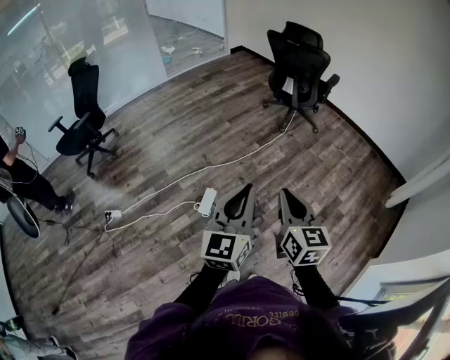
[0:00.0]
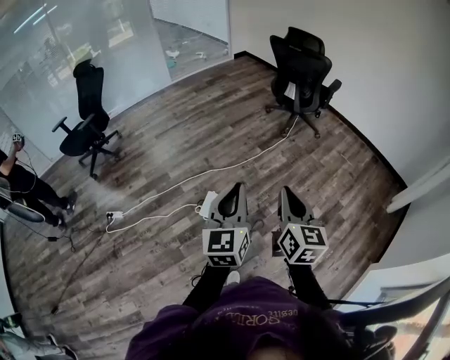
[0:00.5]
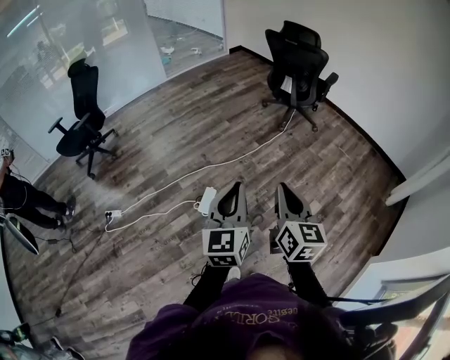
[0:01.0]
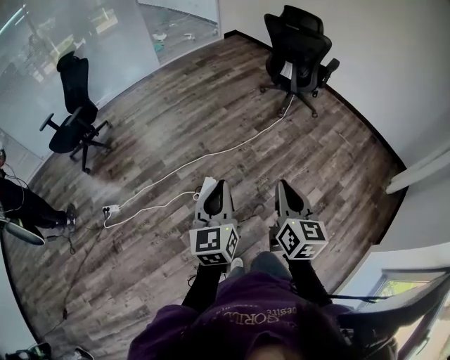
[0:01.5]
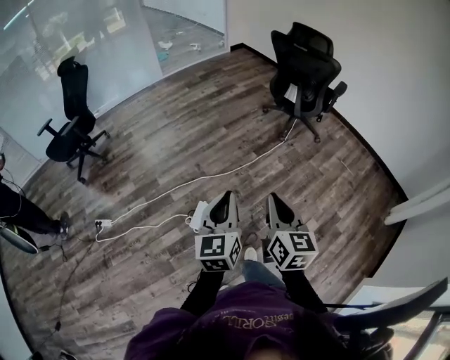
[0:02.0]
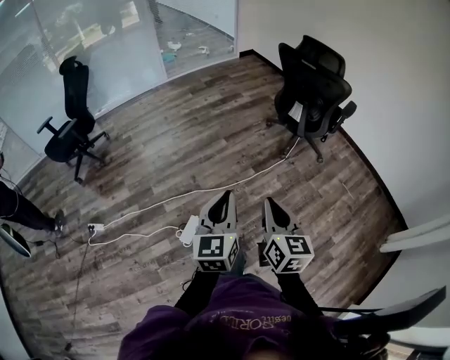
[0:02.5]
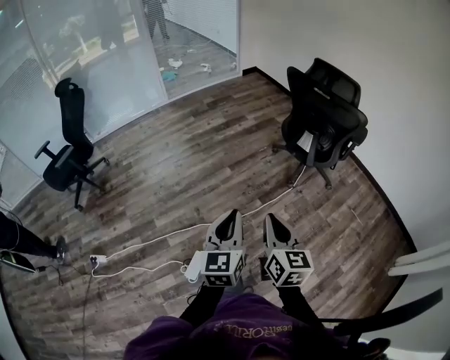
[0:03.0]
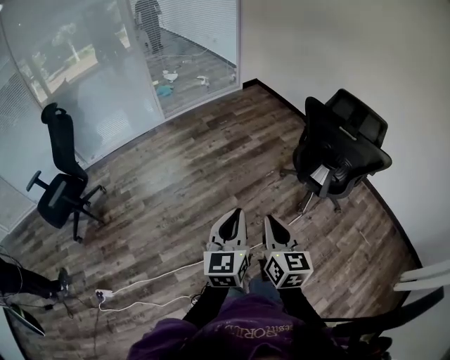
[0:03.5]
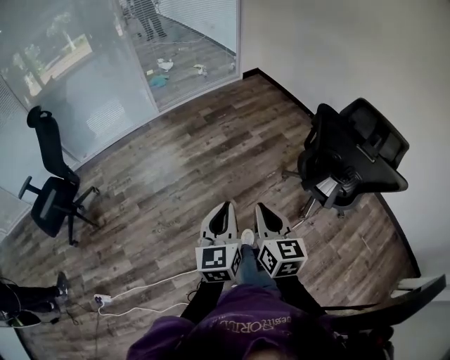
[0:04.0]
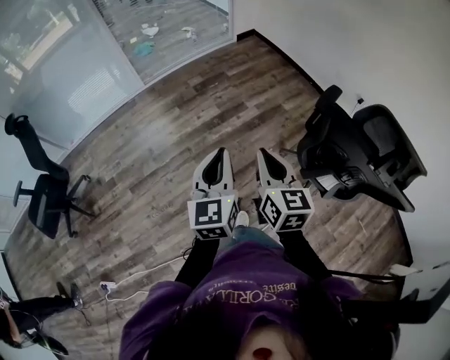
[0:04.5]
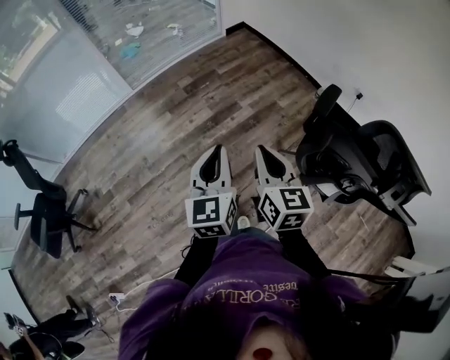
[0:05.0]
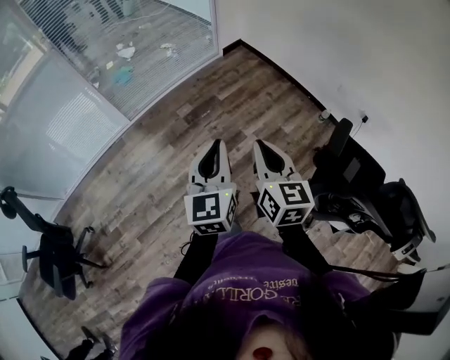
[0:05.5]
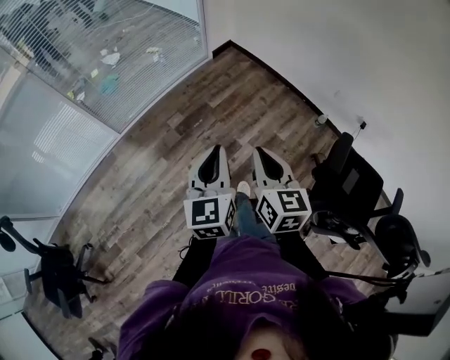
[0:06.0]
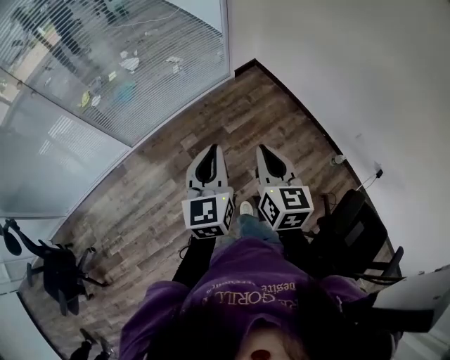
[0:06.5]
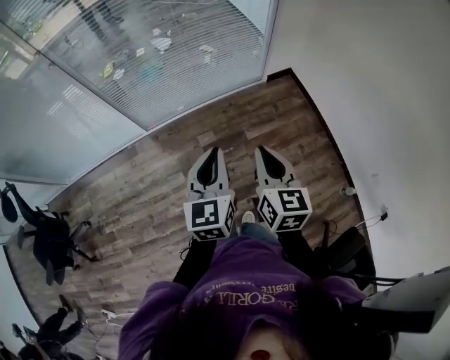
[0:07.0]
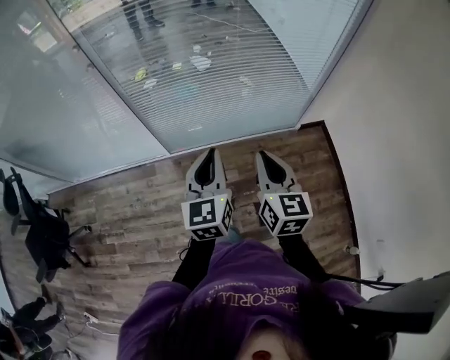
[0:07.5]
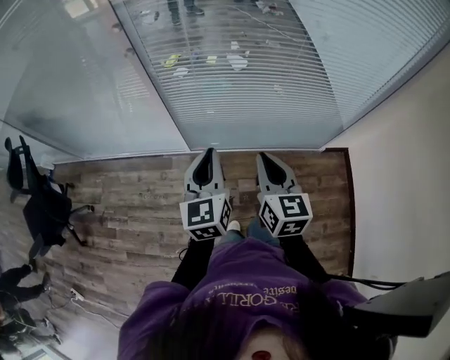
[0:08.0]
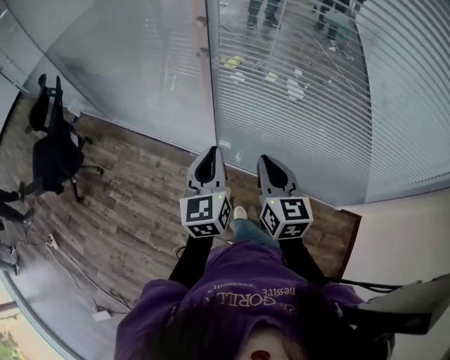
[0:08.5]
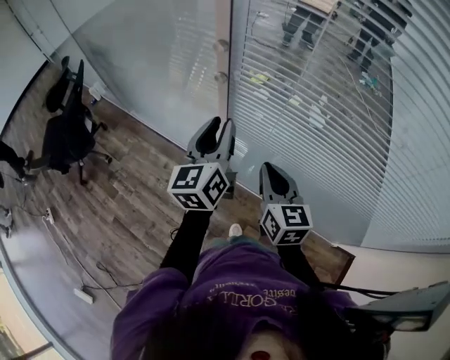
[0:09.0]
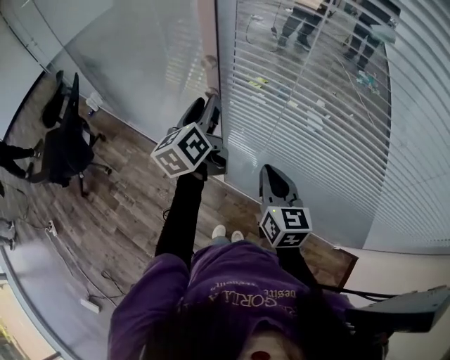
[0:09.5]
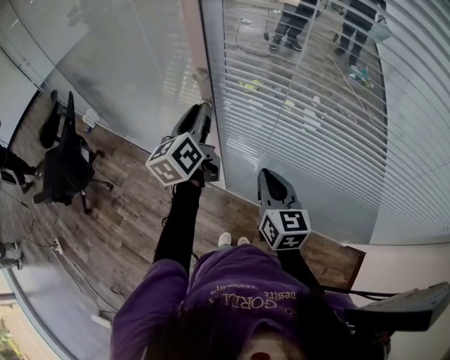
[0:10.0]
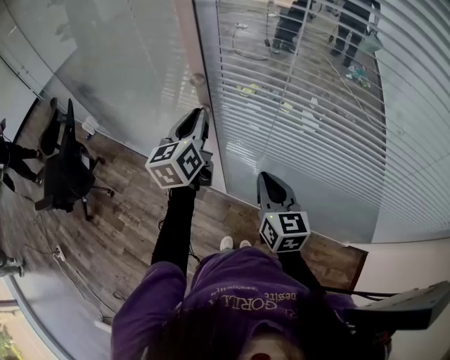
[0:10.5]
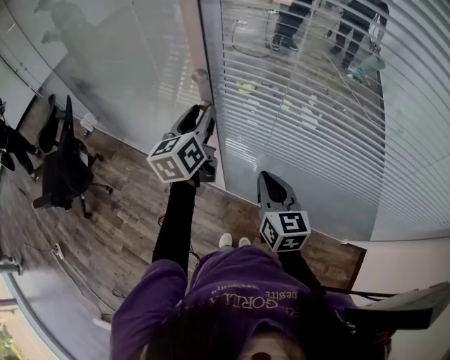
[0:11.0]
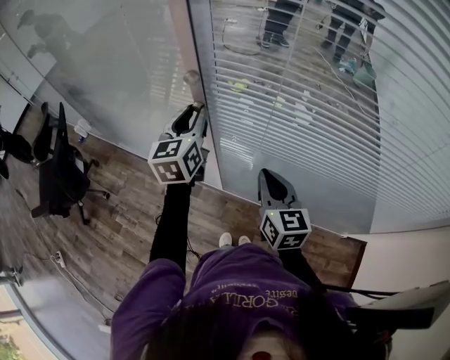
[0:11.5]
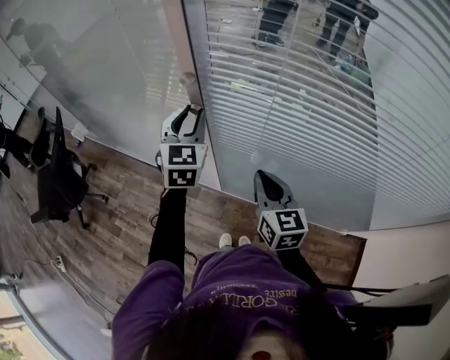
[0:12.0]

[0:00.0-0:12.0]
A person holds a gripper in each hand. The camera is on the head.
0:00.0 to 0:02.0: The left gripper travels forward and downward by some 20 cm. Meanwhile the right gripper shifts about 15 cm forward.
0:02.0 to 0:04.0: The pair of grippers is taken forward, about 70 cm.
0:04.0 to 0:06.0: The two grippers travel together, forward, some 70 cm.
0:06.0 to 0:08.0: The pair of grippers is taken roughly 60 cm. The right gripper changes its angle by roughly 40 degrees; the left gripper changes its angle by roughly 50 degrees.
0:08.0 to 0:10.0: The left gripper ends up approximately 40 cm from where it was, turns by some 30 degrees, and opens its fingers. The right gripper changes place by about 30 cm, and turns by about 30 degrees.
0:10.0 to 0:12.0: The left gripper twists about 50 degrees clockwise, seen from behind.

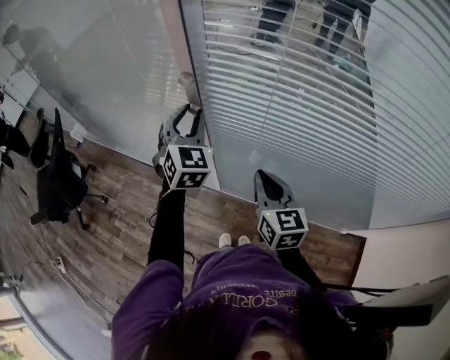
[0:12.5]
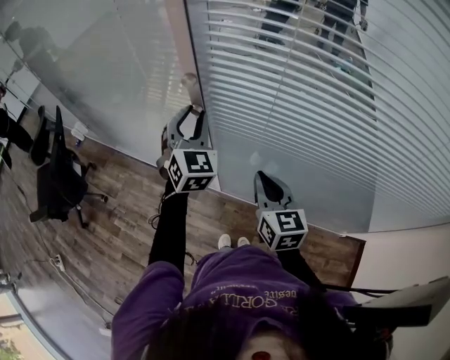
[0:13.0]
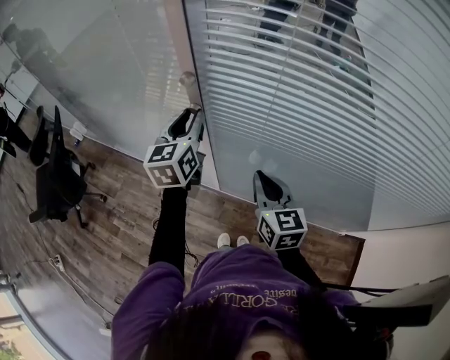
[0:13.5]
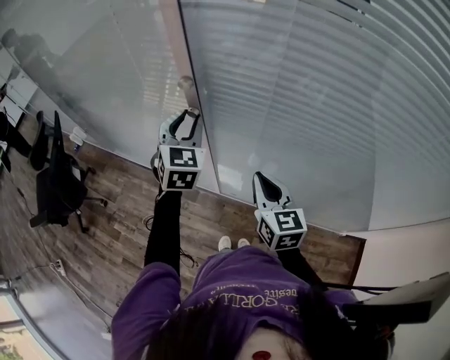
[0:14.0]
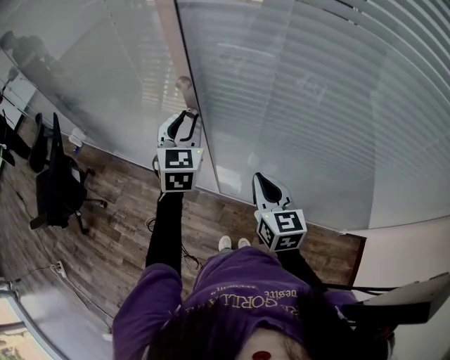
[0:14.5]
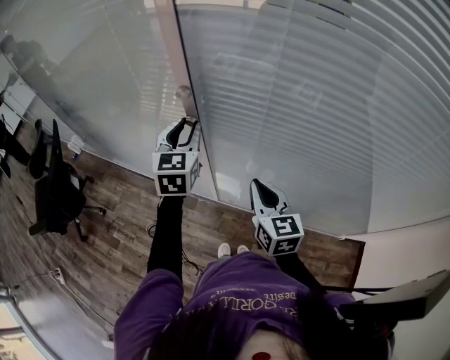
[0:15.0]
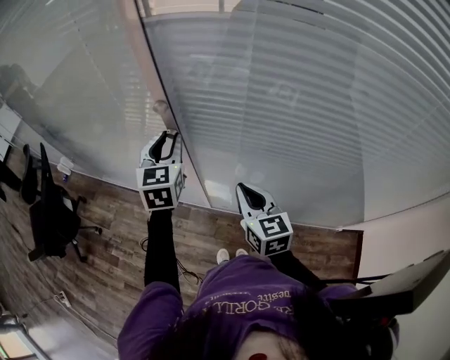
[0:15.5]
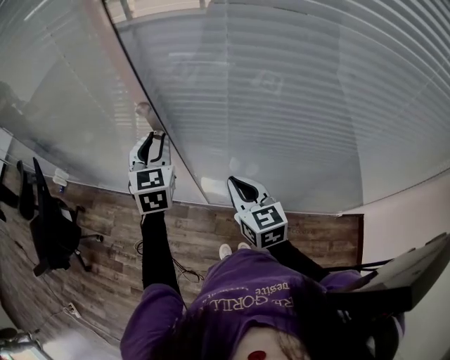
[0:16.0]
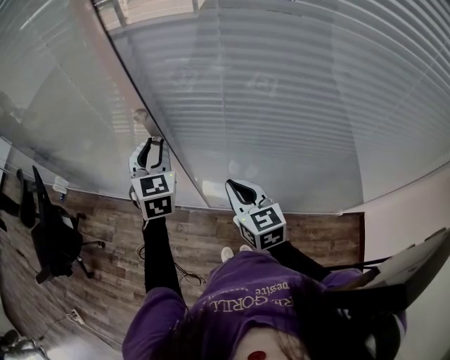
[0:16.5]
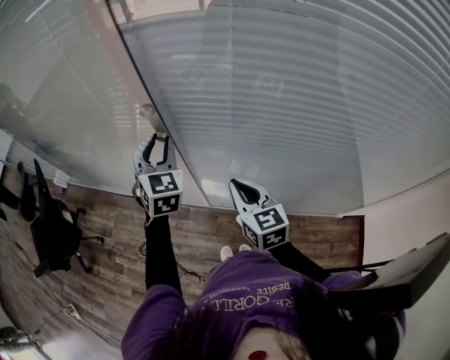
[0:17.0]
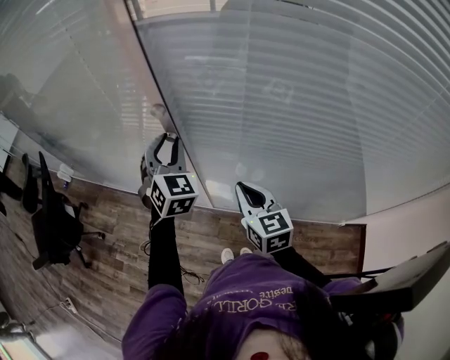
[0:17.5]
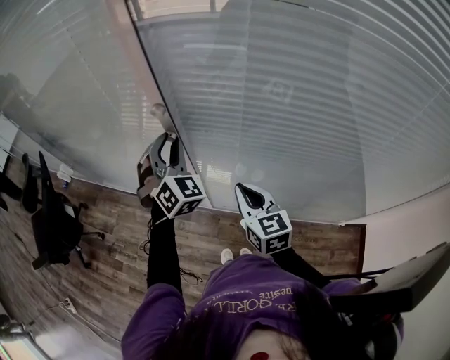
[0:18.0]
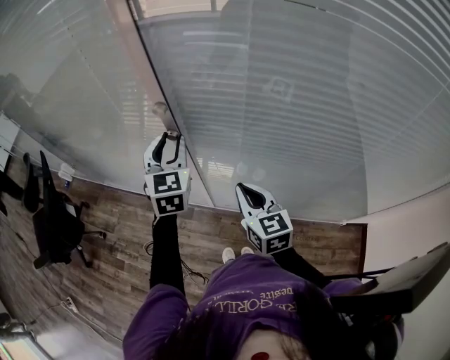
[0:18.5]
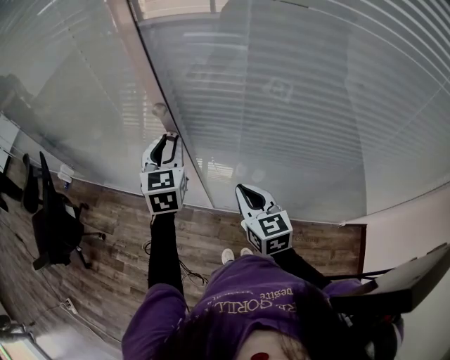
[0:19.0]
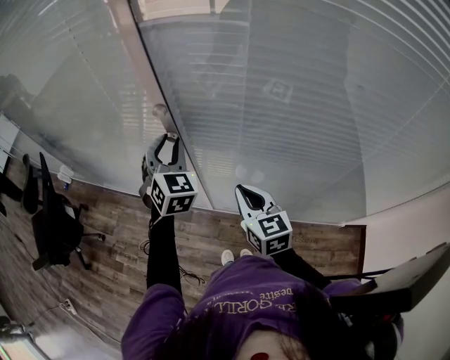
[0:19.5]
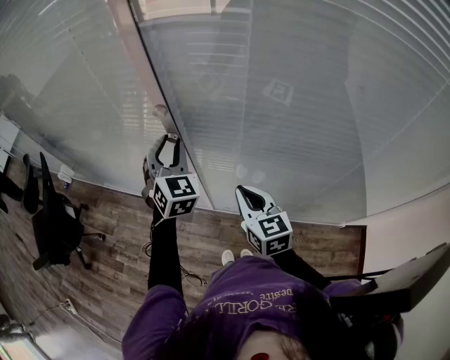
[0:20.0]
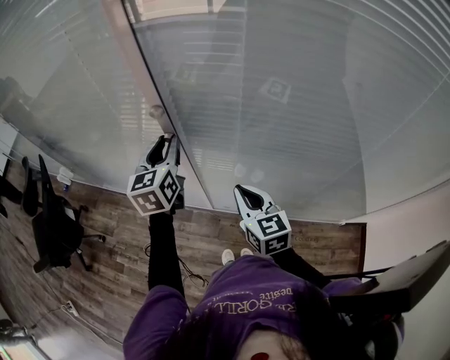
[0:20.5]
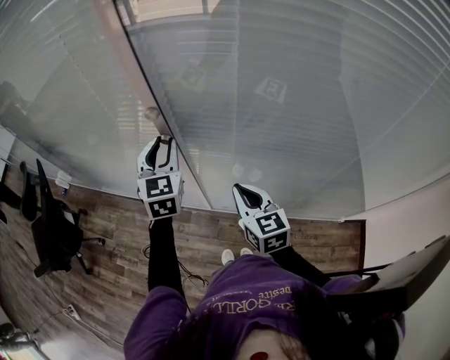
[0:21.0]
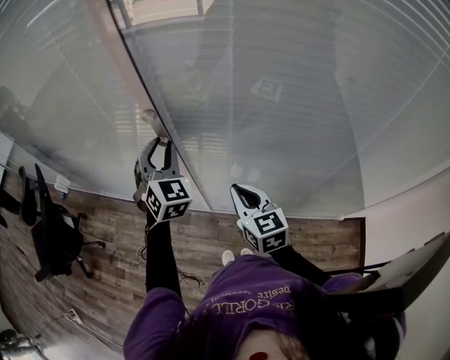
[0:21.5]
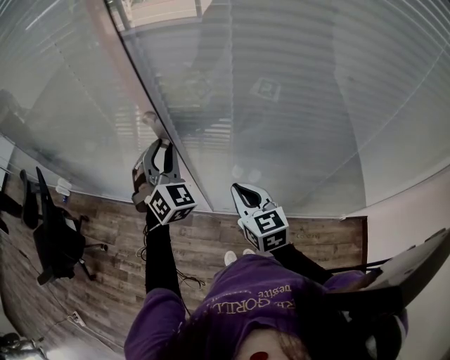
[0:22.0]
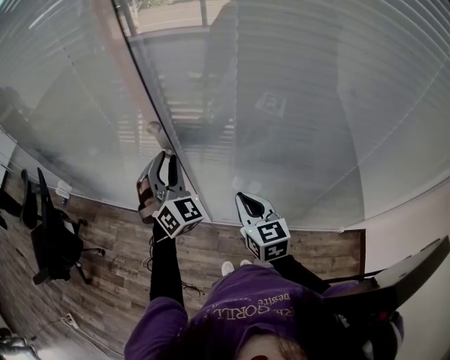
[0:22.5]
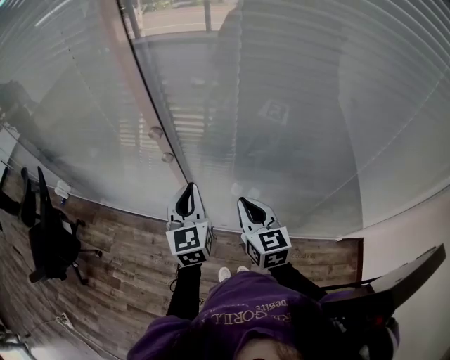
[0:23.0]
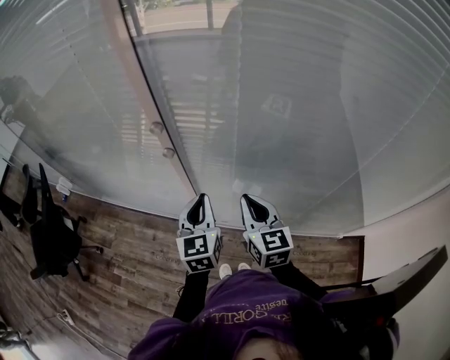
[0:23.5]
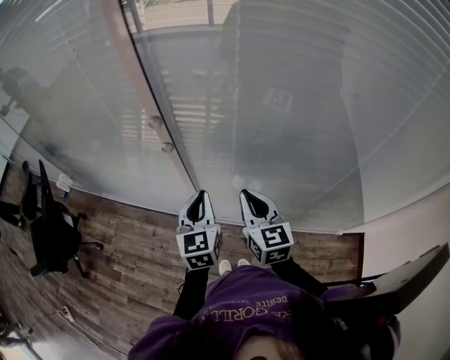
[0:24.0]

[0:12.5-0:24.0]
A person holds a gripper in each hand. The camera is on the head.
0:14.5 to 0:16.5: There are only small adjustments of the grippers.
0:22.0 to 0:24.0: The left gripper moves backward, downward and to the right, about 15 cm, rotates around the line of its fingers by approximately 50 degrees, counterclockwise from behind, and closes.

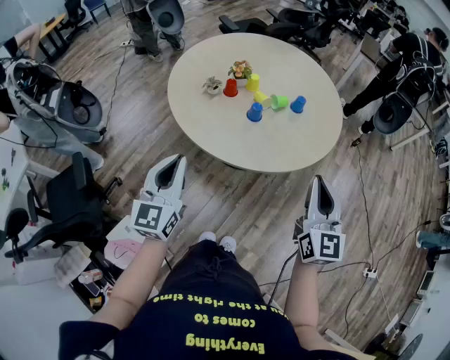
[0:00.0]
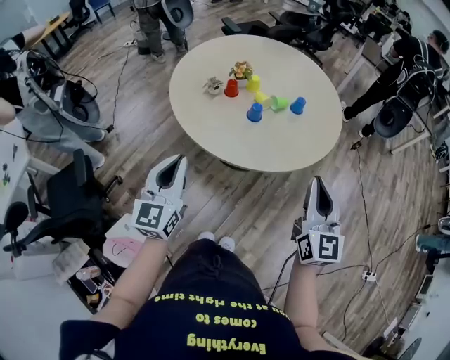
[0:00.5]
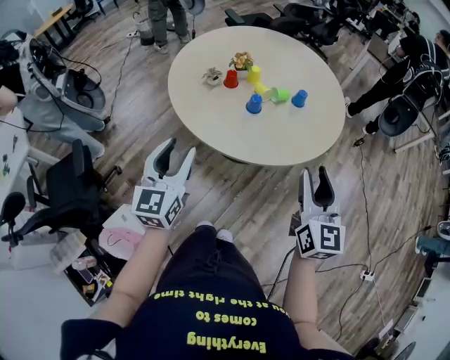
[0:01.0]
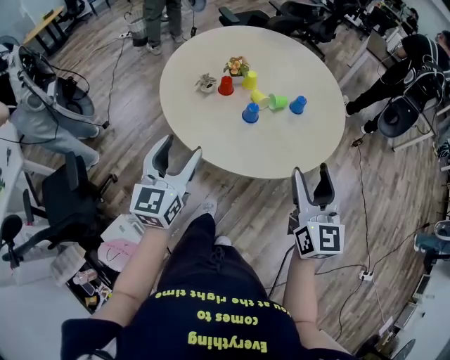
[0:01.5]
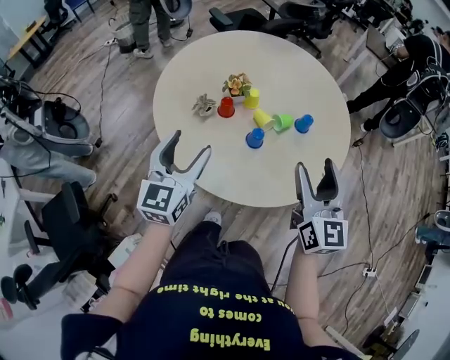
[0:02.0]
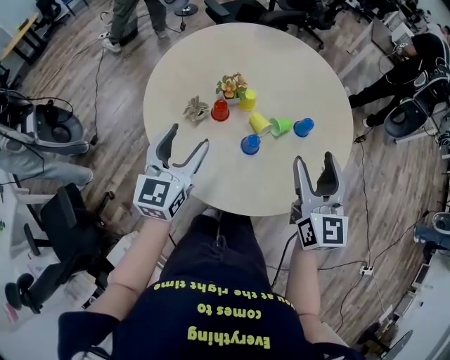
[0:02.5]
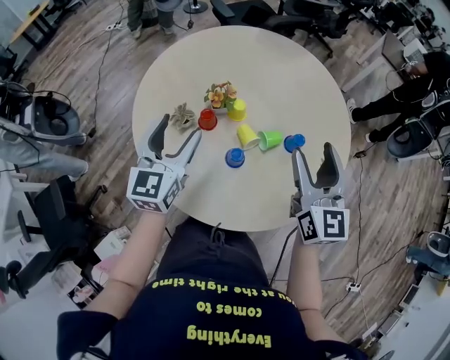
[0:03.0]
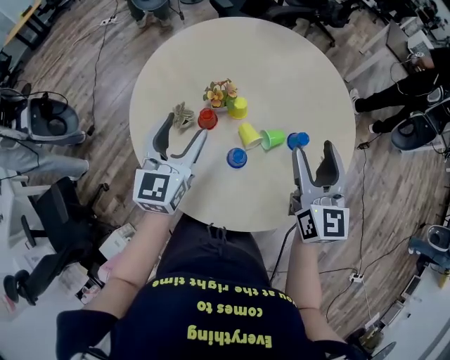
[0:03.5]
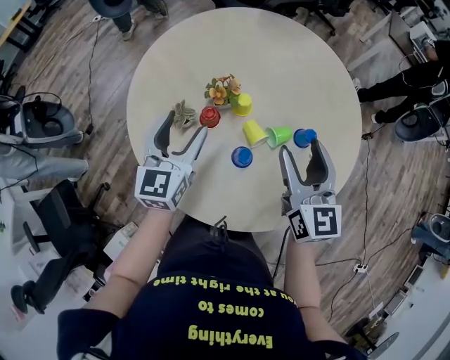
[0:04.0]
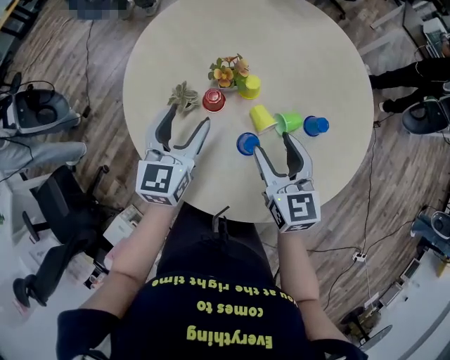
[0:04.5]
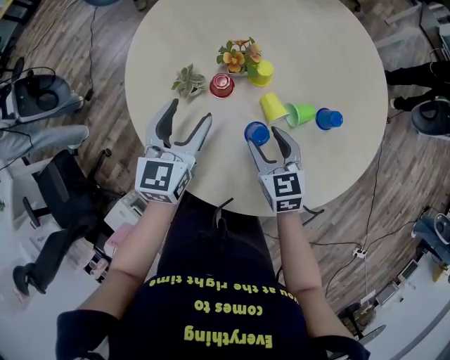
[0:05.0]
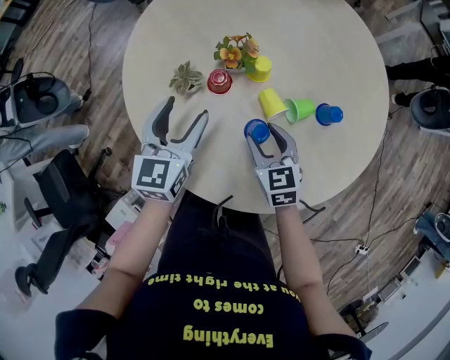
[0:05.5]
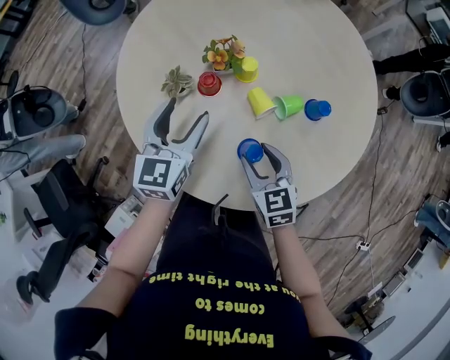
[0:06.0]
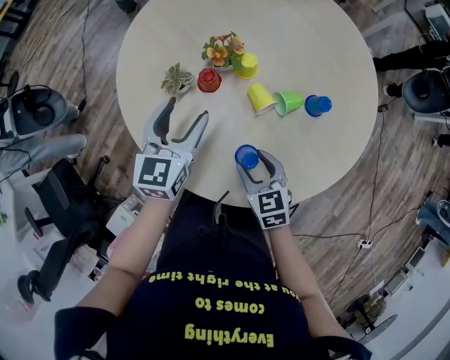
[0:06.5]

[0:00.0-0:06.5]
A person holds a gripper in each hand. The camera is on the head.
0:00.0 to 0:02.0: The two grippers go approximately 20 cm forward. The left gripper opens up, while the right gripper opens its fingers.
0:02.0 to 0:04.5: Both grippers move forward and downward, about 20 cm. The right gripper rotates roughly 30 degrees.
0:04.5 to 0:06.5: The right gripper goes approximately 15 cm downward and backward, and turns by about 20 degrees.
